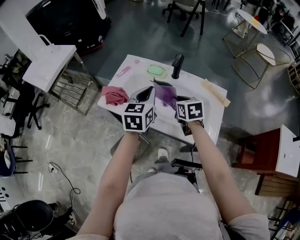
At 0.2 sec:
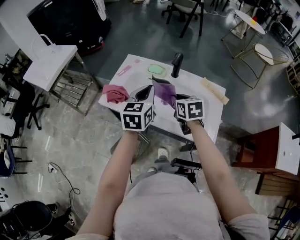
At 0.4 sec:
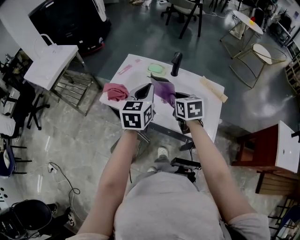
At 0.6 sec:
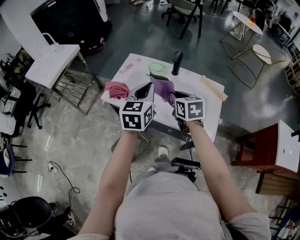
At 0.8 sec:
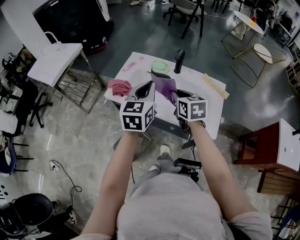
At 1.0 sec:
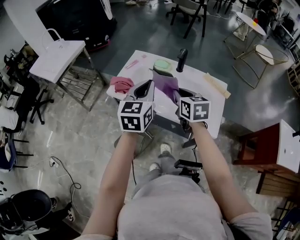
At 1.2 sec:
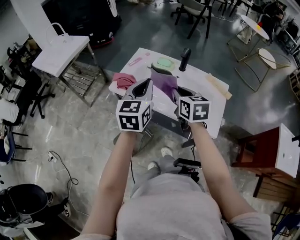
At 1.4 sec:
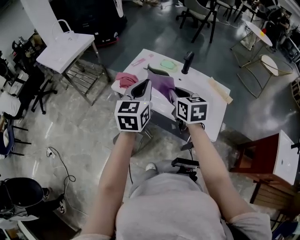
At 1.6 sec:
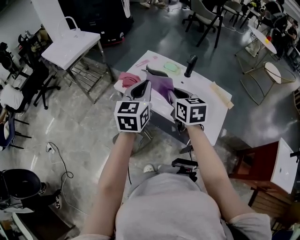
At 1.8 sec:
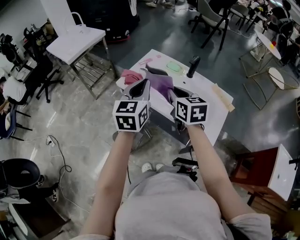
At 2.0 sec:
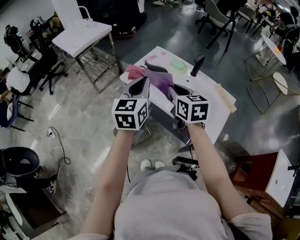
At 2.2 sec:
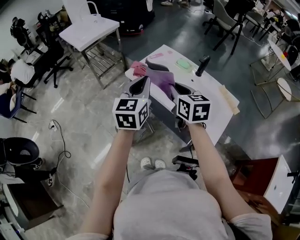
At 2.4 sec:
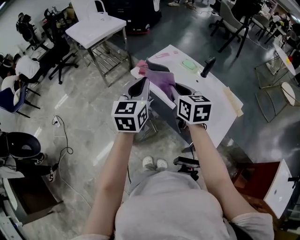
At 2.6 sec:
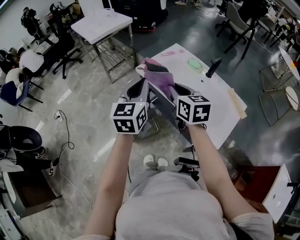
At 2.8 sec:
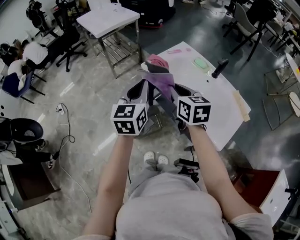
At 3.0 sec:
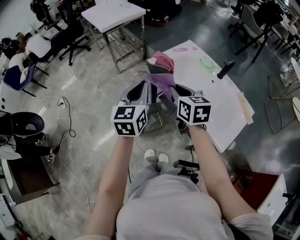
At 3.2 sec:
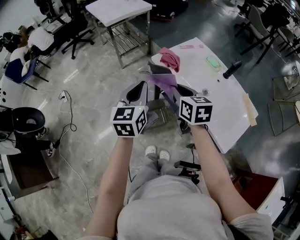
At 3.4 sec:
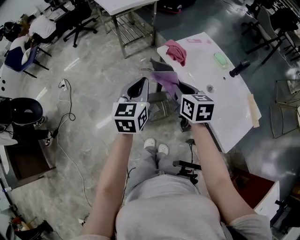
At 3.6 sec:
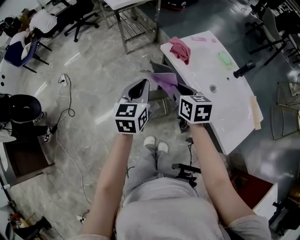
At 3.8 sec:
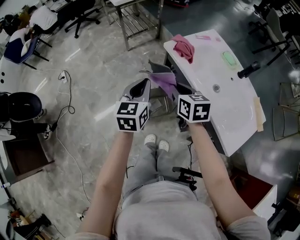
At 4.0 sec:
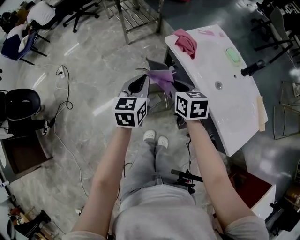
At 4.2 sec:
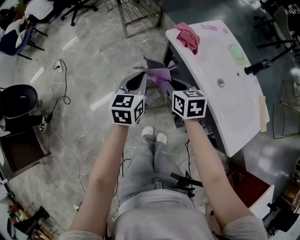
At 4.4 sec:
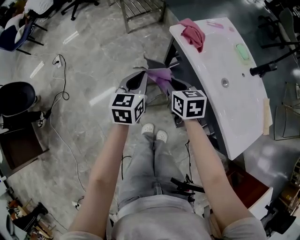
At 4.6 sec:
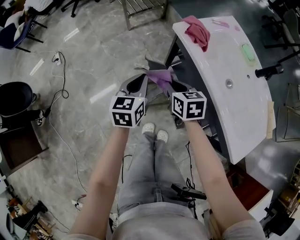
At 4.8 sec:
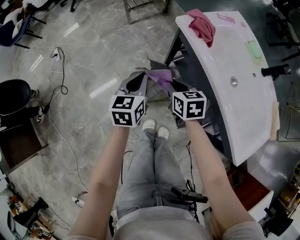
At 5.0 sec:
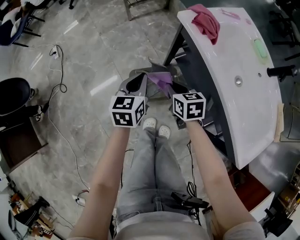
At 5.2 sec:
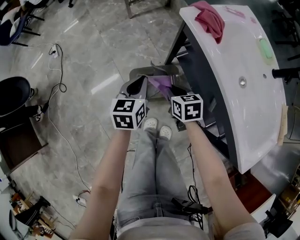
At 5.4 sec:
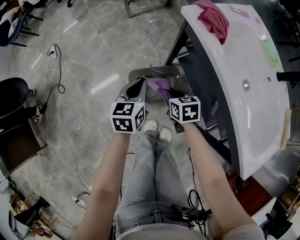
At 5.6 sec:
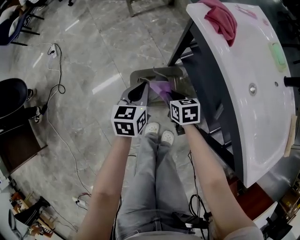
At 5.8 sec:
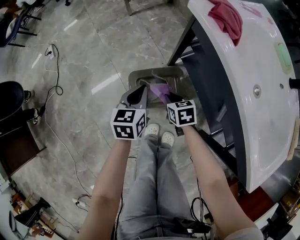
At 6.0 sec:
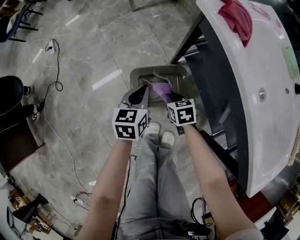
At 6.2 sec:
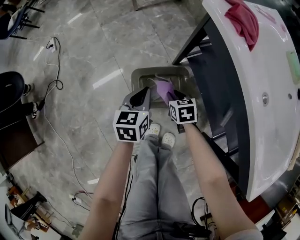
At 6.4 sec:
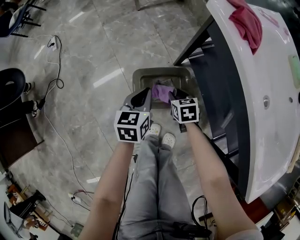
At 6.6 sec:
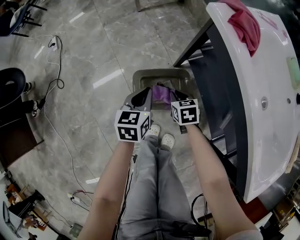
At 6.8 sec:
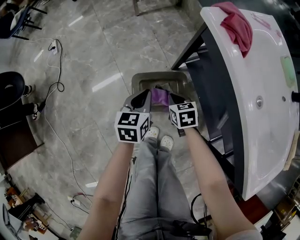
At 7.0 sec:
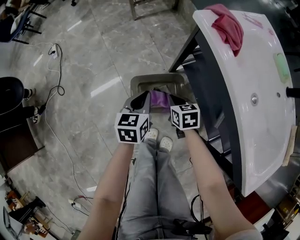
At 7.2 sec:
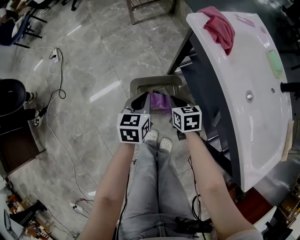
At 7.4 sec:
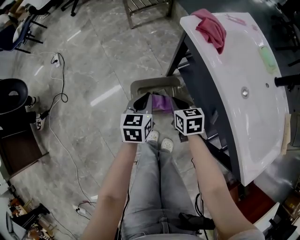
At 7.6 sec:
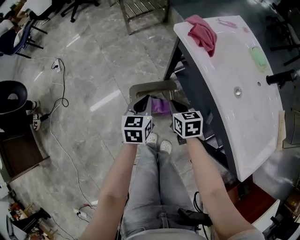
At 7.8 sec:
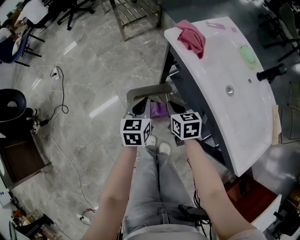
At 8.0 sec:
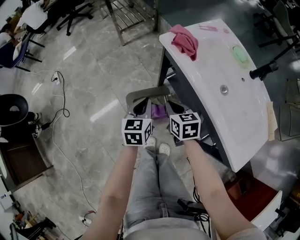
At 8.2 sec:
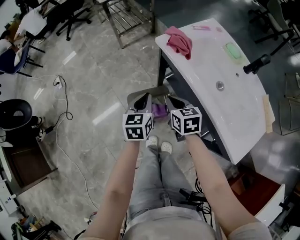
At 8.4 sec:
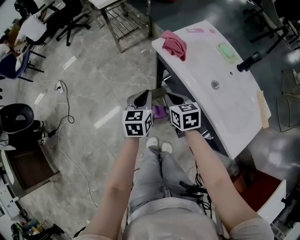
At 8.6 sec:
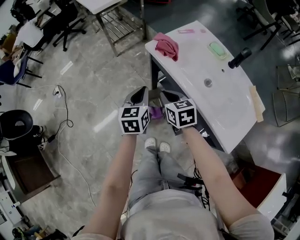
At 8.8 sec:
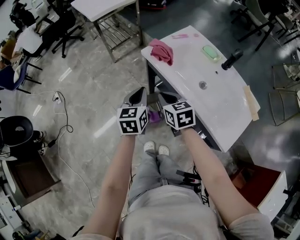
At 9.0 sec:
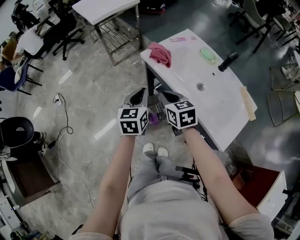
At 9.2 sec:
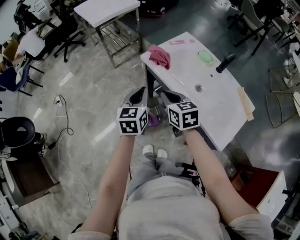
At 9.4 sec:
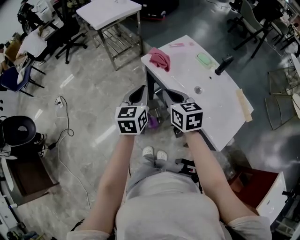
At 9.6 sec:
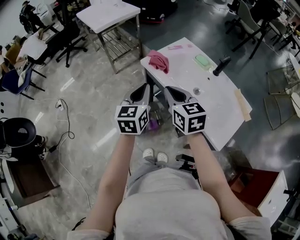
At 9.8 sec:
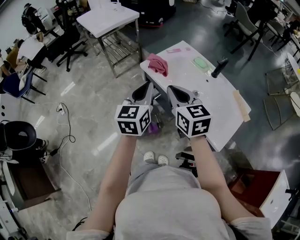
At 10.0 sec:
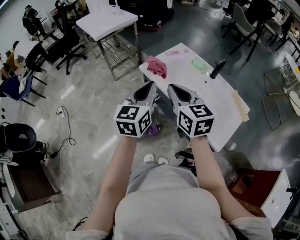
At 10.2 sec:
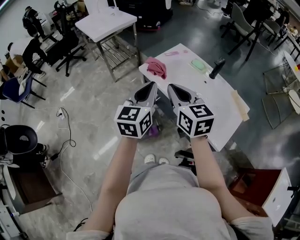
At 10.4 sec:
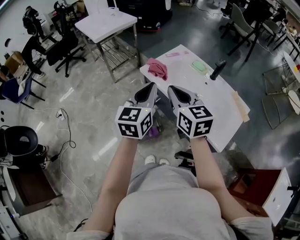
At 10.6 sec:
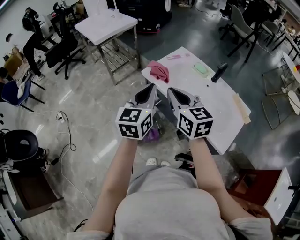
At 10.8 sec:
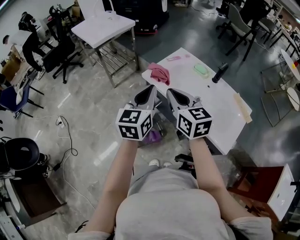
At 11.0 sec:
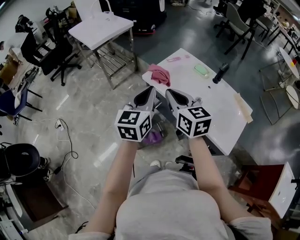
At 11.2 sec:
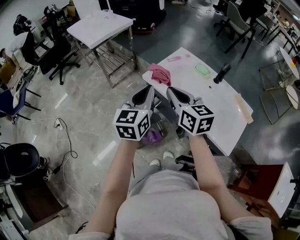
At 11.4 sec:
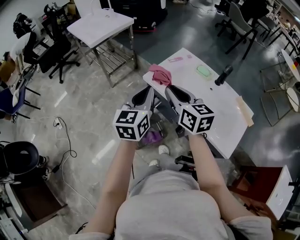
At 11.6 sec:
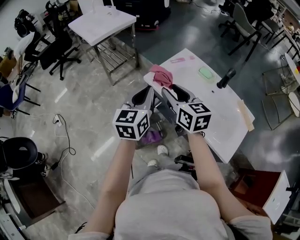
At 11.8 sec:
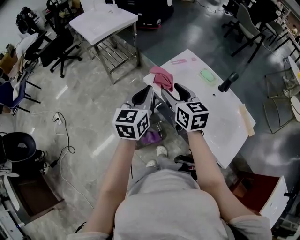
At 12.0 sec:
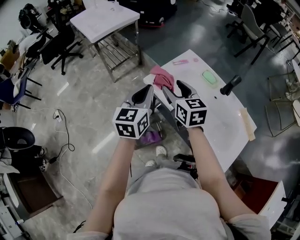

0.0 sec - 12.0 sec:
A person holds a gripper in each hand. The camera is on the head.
0.0 sec - 1.6 sec: The right gripper heads upward, to the left and backward, covering approximately 20 cm. The left gripper heads backward, to the left and upward, covering some 15 cm.
1.6 sec - 3.0 sec: The right gripper shifts some 10 cm to the left, and swivels some 20 degrees, while the left gripper moves to the left and backward, some 15 cm, and changes its angle by some 20 degrees.
3.0 sec - 4.4 sec: The left gripper heads downward, covering approximately 20 cm. The right gripper is displaced downward and to the left by about 20 cm.
4.4 sec - 6.0 sec: The grippers both shift downward by some 30 cm.
6.0 sec - 7.6 sec: The right gripper is displaced upward by roughly 15 cm. The left gripper shifts approximately 10 cm upward.
7.6 sec - 9.0 sec: The two grippers go roughly 25 cm upward.
9.0 sec - 10.4 sec: The two grippers go roughly 15 cm upward. The right gripper changes its angle by approximately 20 degrees.
10.4 sec - 12.0 sec: The left gripper travels forward by some 15 cm; the right gripper is displaced forward and downward by roughly 20 cm, and opens up.

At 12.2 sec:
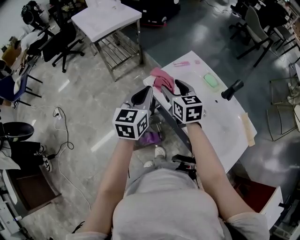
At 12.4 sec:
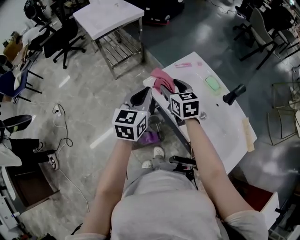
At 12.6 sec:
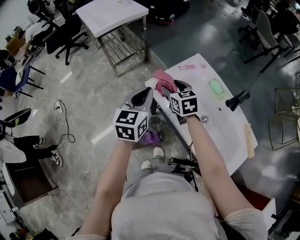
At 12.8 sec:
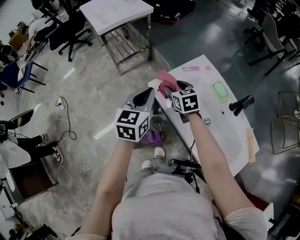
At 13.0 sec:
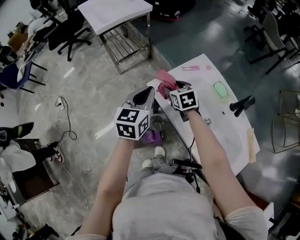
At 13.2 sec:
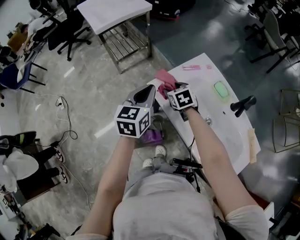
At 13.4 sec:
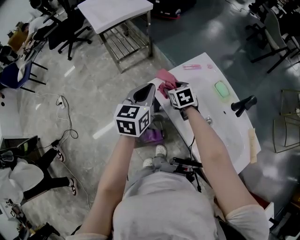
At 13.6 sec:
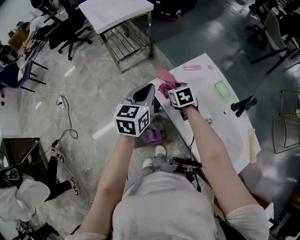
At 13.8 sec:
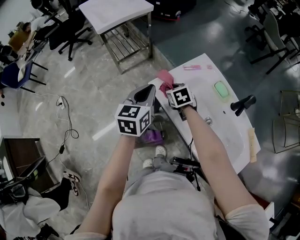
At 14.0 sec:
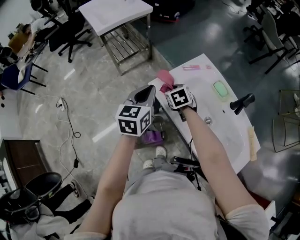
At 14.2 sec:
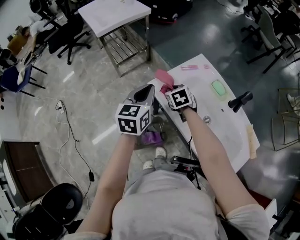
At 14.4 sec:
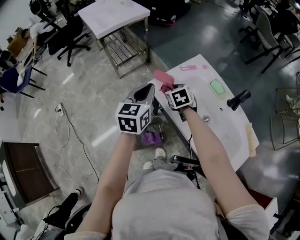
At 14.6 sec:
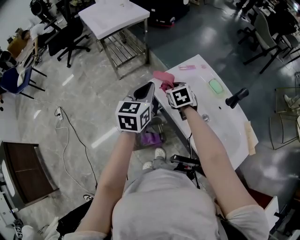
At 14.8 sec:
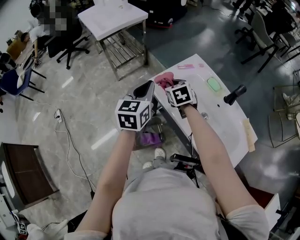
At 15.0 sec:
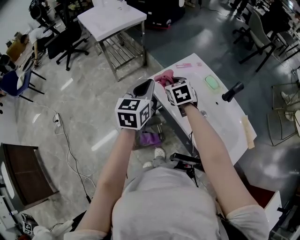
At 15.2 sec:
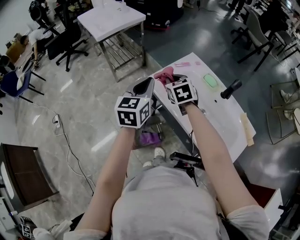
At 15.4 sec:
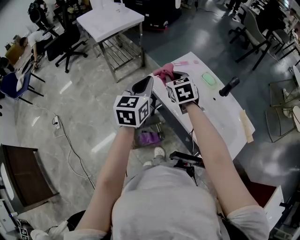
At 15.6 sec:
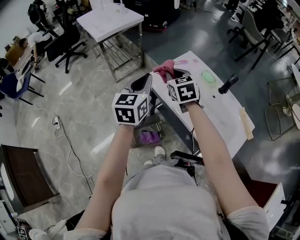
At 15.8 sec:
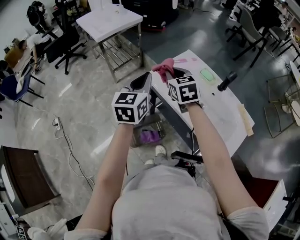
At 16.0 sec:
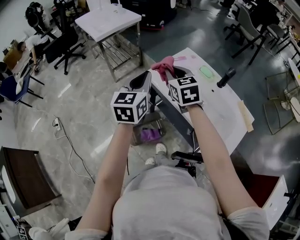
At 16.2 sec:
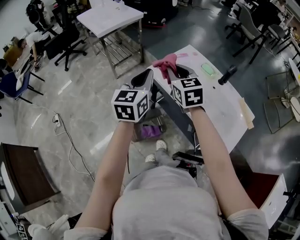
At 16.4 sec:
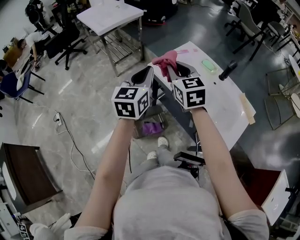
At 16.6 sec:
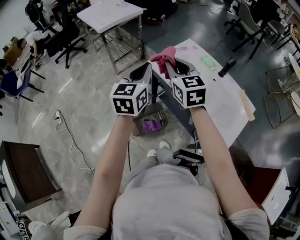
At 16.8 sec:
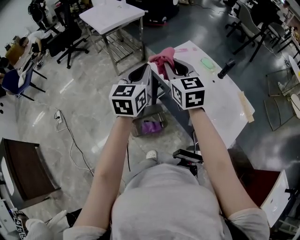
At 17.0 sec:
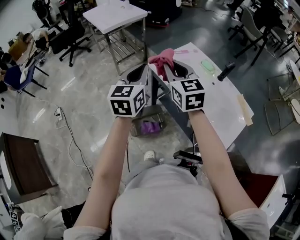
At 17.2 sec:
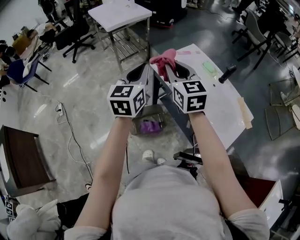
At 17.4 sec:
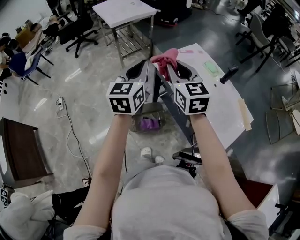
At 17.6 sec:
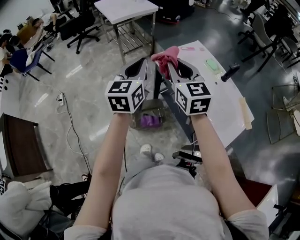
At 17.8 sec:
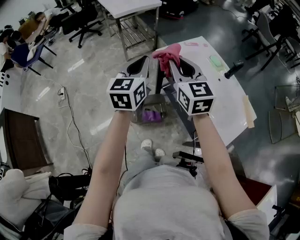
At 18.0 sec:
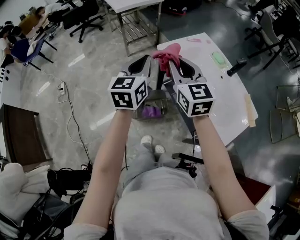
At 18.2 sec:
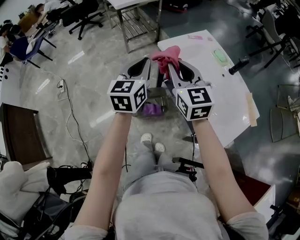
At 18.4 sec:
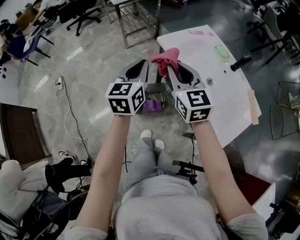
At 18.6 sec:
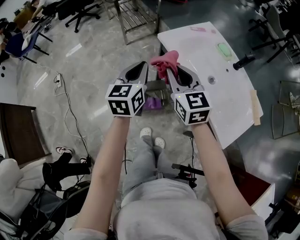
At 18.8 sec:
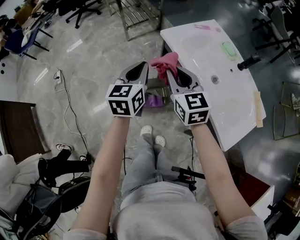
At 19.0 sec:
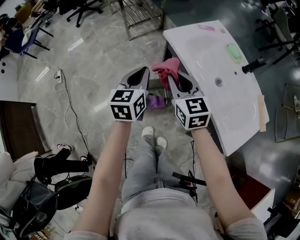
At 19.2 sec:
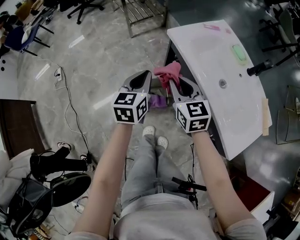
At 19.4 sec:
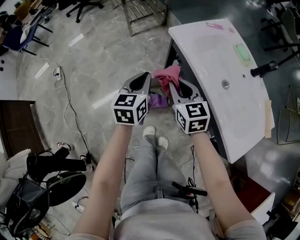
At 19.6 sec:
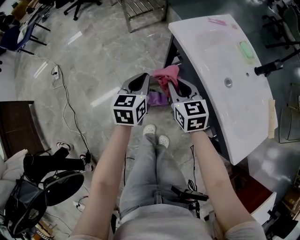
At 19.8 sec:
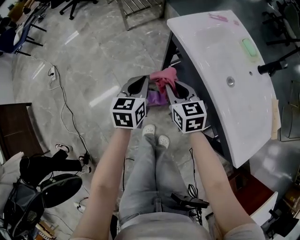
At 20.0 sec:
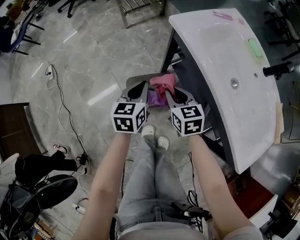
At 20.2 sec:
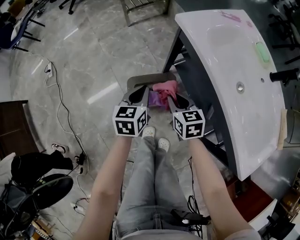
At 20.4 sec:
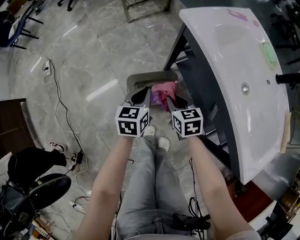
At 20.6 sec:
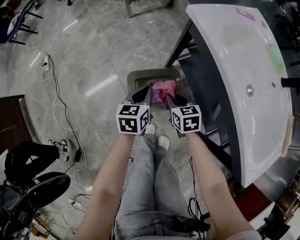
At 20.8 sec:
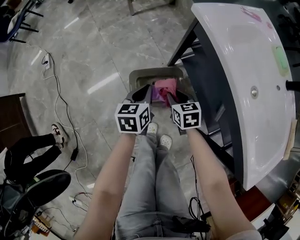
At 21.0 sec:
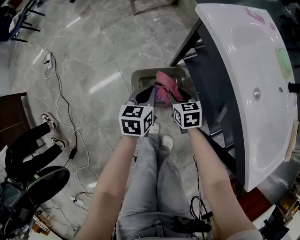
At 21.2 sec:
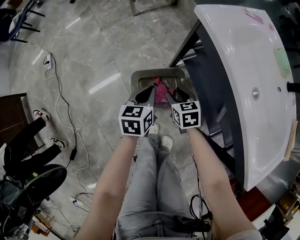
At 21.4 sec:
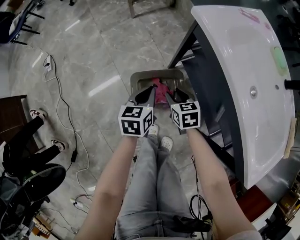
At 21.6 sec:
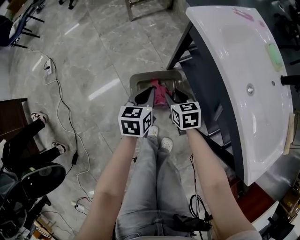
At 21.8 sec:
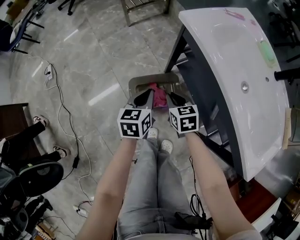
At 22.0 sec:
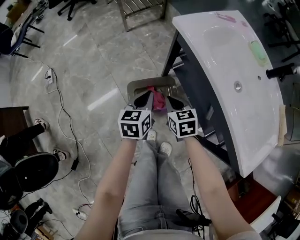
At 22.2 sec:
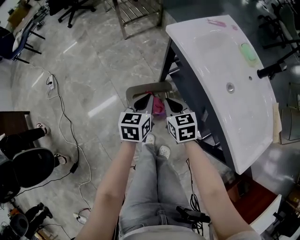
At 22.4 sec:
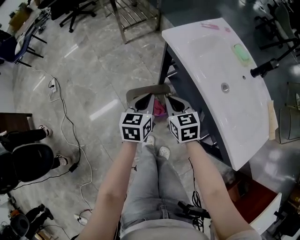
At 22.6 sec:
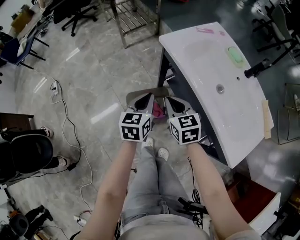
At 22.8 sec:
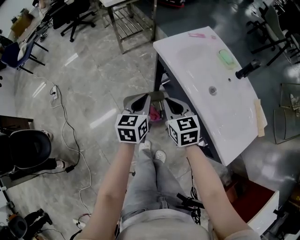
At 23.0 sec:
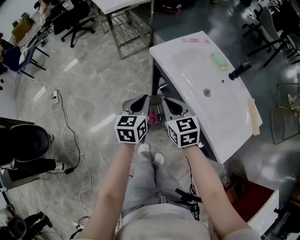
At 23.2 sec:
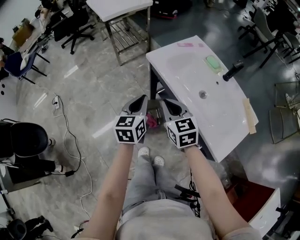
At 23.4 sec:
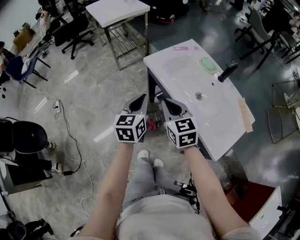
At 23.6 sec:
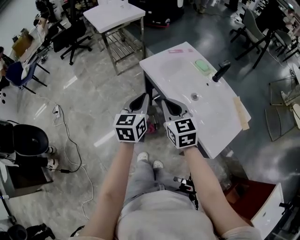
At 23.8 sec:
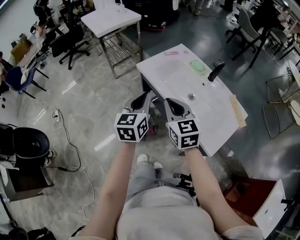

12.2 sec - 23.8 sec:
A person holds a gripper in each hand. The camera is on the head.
12.2 sec - 13.6 sec: The left gripper travels forward by about 5 cm. Meanwhile the right gripper shifts about 20 cm downward and forward, and turns by approximately 30 degrees.
13.6 sec - 15.0 sec: The left gripper shifts some 5 cm upward and backward, while the right gripper moves upward, about 10 cm, and closes up.
15.0 sec - 16.6 sec: The left gripper is displaced backward and upward by some 10 cm. The right gripper shifts about 20 cm upward and backward, and rotates approximately 30 degrees.
16.6 sec - 18.0 sec: Both grippers move backward, approximately 5 cm.
18.0 sec - 19.4 sec: The grippers both shift downward by approximately 20 cm.
19.4 sec - 21.0 sec: The grippers both shift downward by approximately 25 cm. The right gripper rotates roughly 20 degrees, and opens up.
21.0 sec - 22.4 sec: Both grippers move upward, some 20 cm. The right gripper closes up.
22.4 sec - 23.8 sec: Both grippers travel together upward, about 25 cm. The right gripper turns by roughly 20 degrees.
